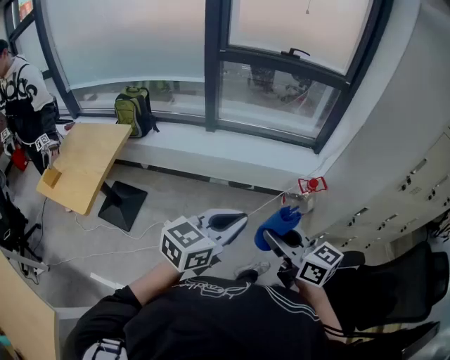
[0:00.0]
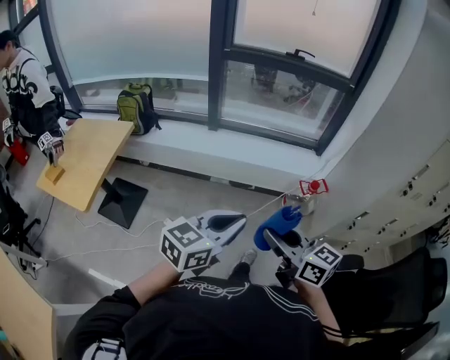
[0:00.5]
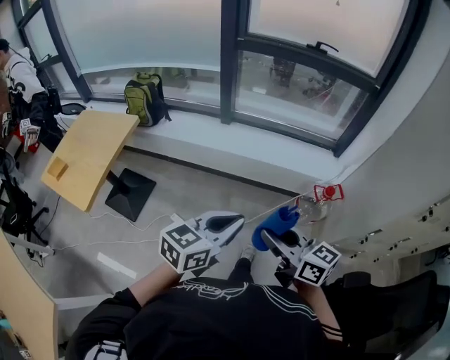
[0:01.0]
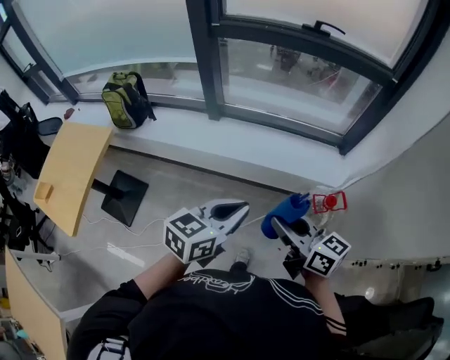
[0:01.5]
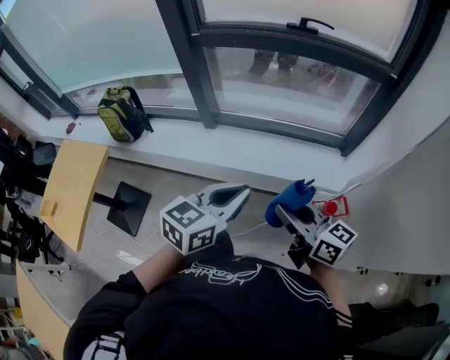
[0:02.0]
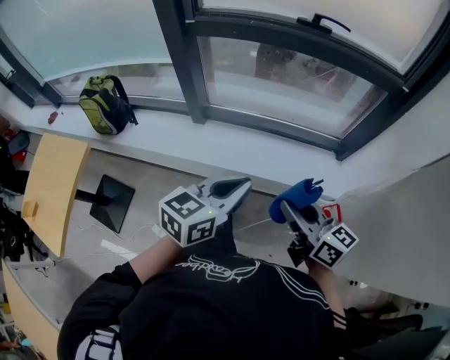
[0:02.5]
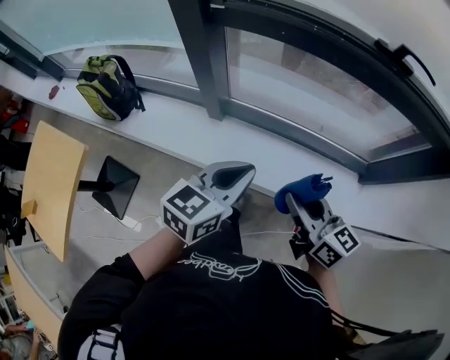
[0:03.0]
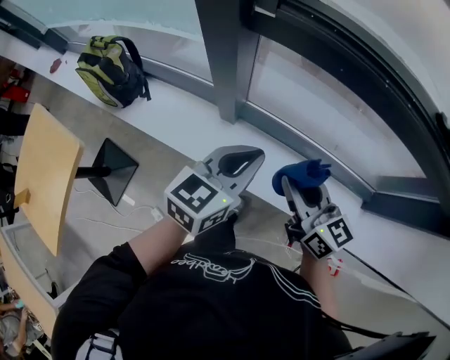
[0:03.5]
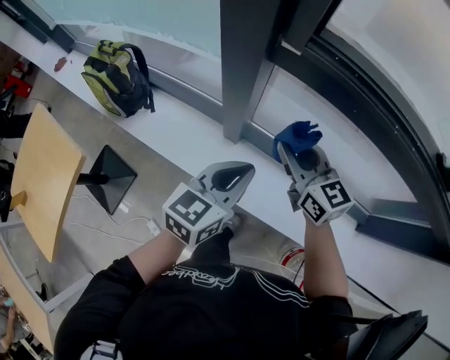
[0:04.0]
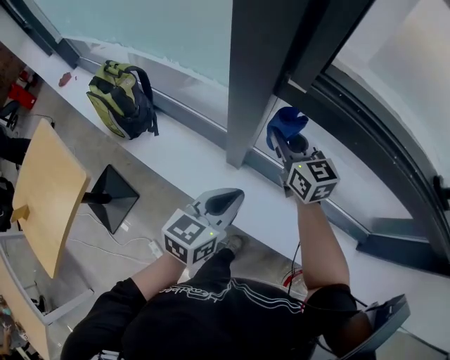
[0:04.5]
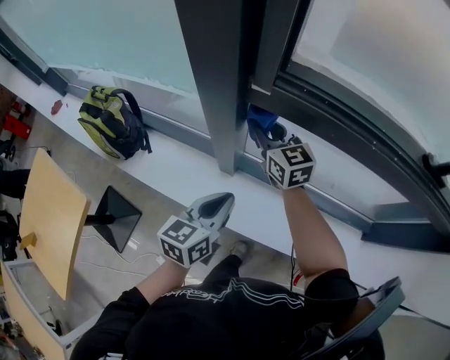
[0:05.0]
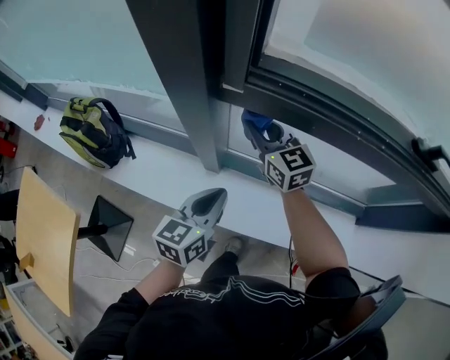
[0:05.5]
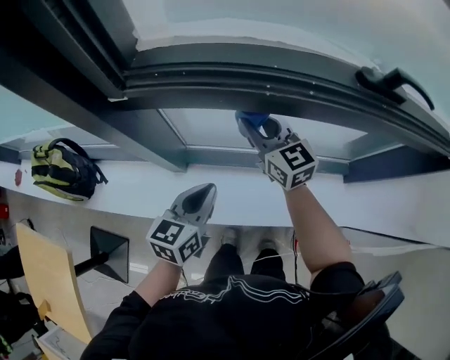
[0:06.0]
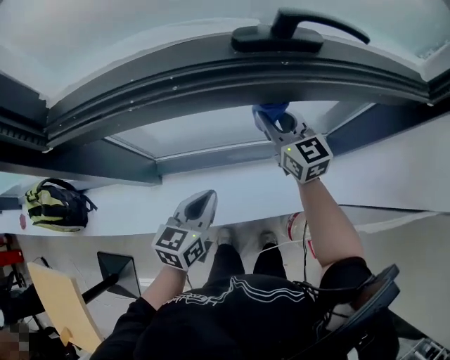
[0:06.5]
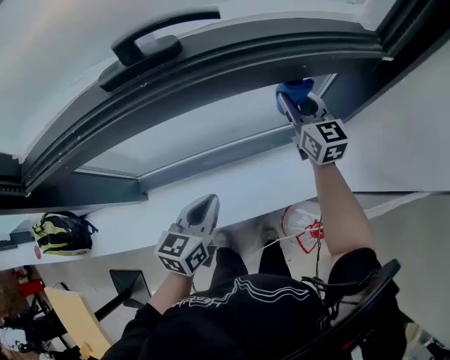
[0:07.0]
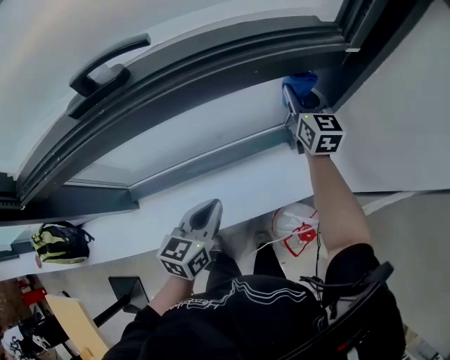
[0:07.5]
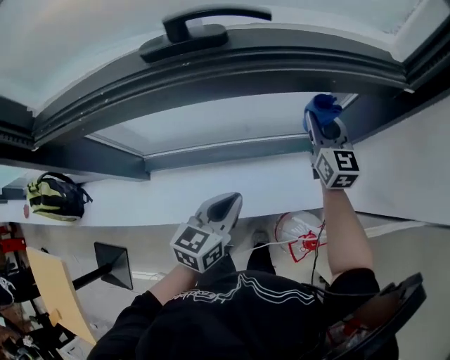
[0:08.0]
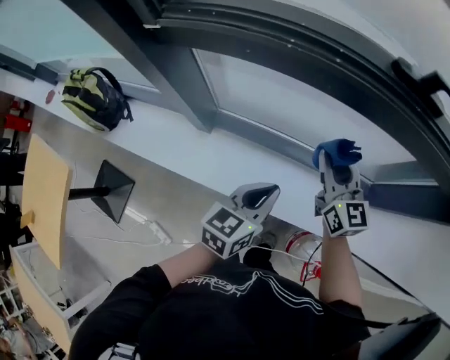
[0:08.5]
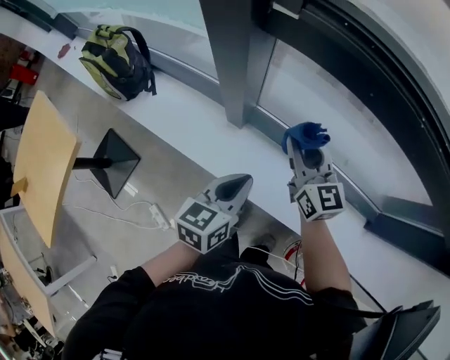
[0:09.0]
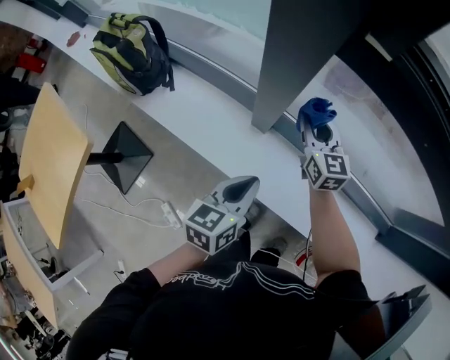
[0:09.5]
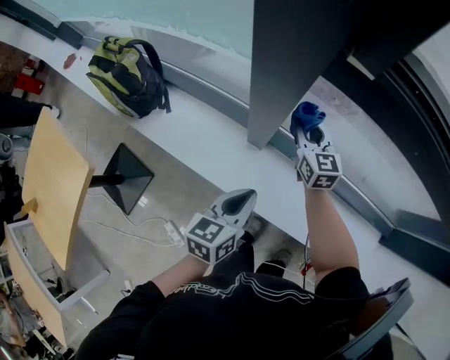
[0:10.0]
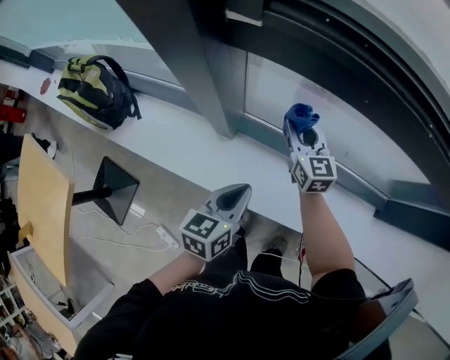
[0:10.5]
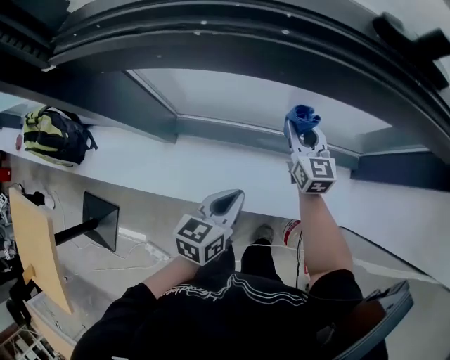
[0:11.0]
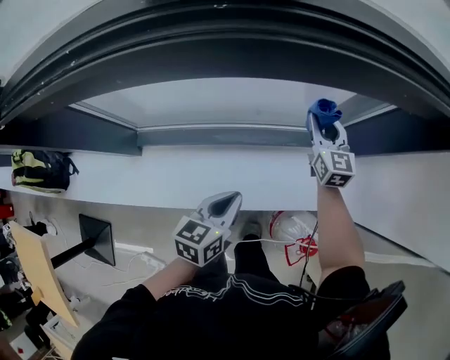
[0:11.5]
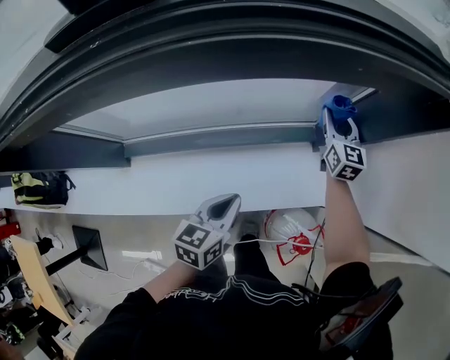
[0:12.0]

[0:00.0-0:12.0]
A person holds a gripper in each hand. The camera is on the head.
0:00.0 to 0:02.0: Both grippers are carried forward, about 40 cm.
0:02.0 to 0:04.0: The two grippers travel together, forward, approximately 50 cm. The right gripper changes its angle by roughly 30 degrees.
0:04.0 to 0:06.0: The left gripper goes roughly 10 cm to the right and downward, while the right gripper moves to the right and forward, roughly 15 cm, and rotates about 20 degrees.
0:06.0 to 0:08.0: The left gripper moves roughly 30 cm; the right gripper ends up some 50 cm from where it was, and swivels about 30 degrees.
0:08.0 to 0:10.0: Both grippers are carried approximately 60 cm. The right gripper changes its angle by about 40 degrees; the left gripper swivels roughly 40 degrees.
0:10.0 to 0:12.0: The pair of grippers is taken about 60 cm. The right gripper changes its angle by about 50 degrees, while the left gripper changes its angle by about 40 degrees.

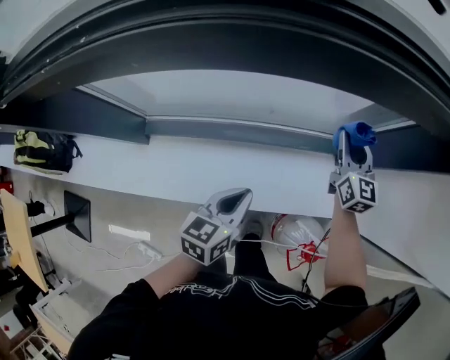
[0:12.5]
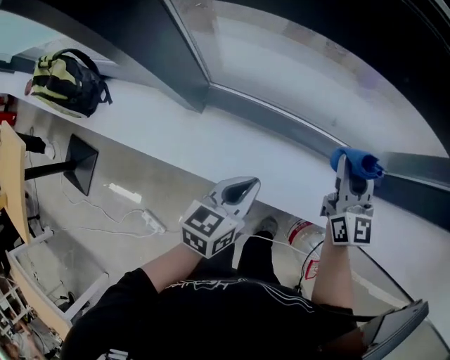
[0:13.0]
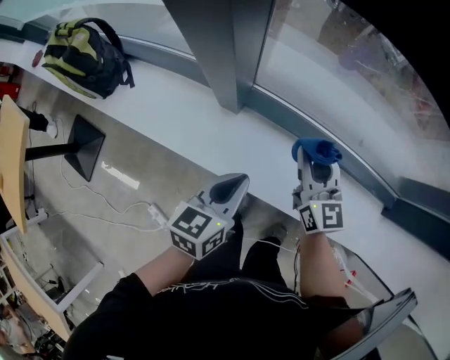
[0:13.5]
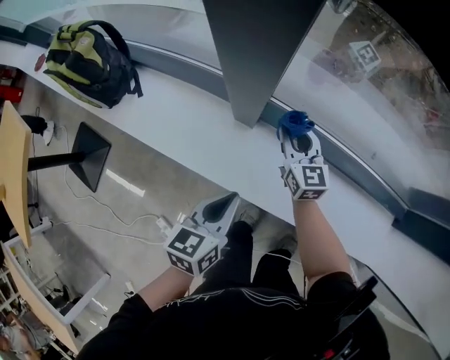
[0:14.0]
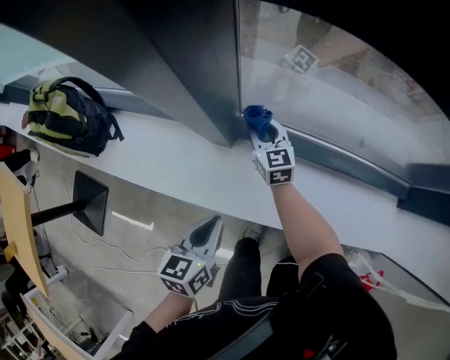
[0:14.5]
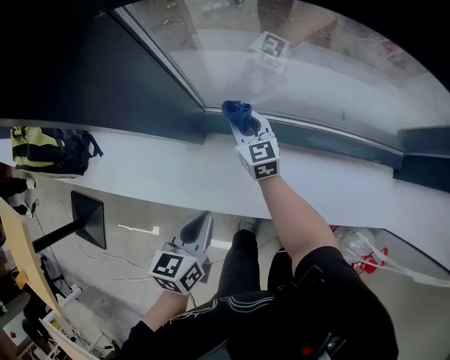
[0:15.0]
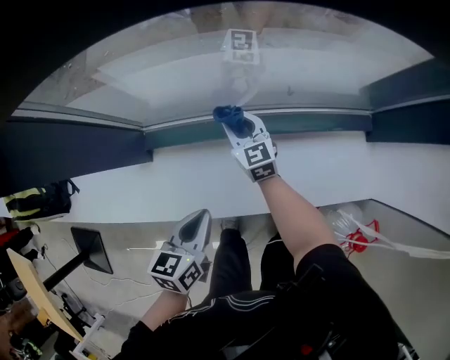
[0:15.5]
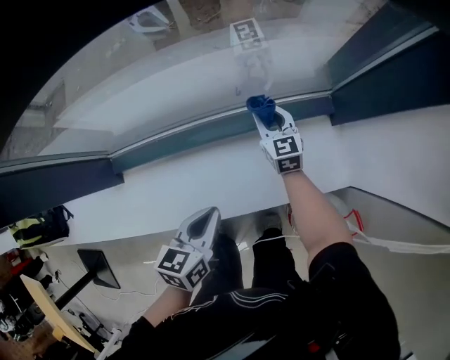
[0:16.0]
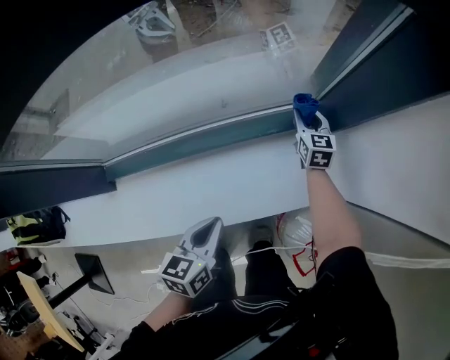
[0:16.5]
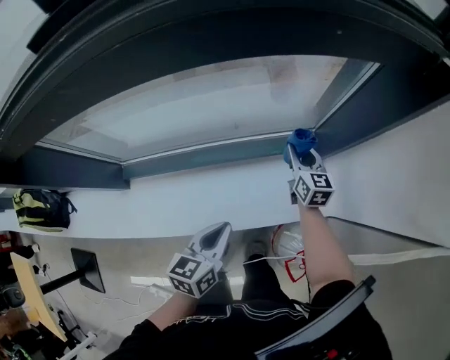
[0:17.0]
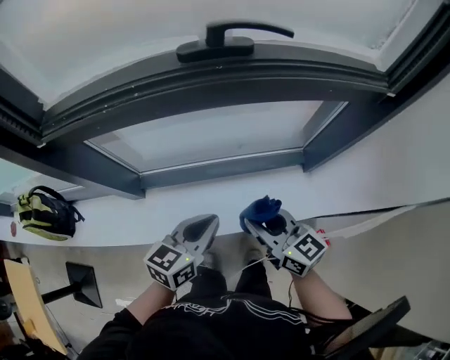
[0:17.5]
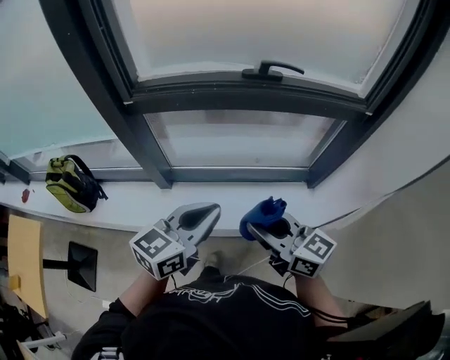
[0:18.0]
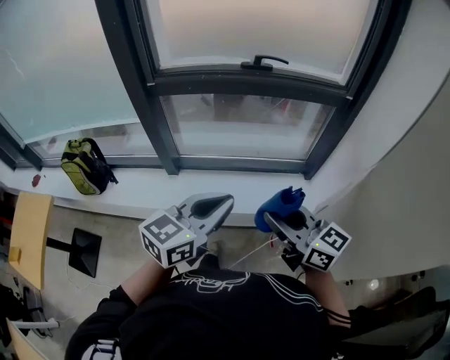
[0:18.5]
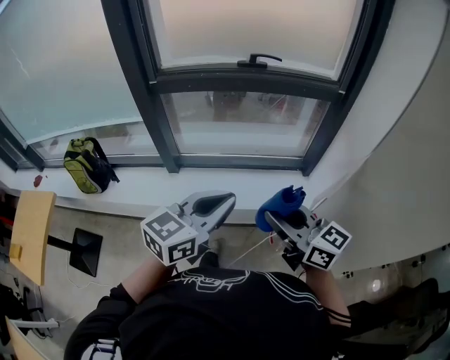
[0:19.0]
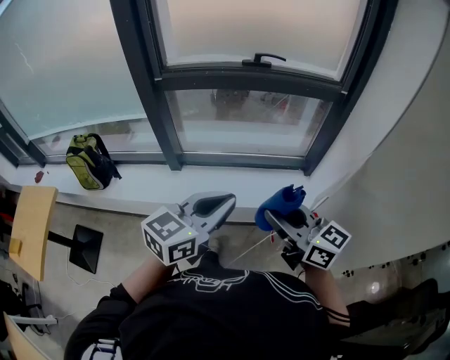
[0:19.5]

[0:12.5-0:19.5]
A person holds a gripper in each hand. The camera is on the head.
0:12.5 to 0:14.5: The pair of grippers is taken roughly 50 cm. The left gripper turns by some 30 degrees; the right gripper rotates some 40 degrees.
0:14.5 to 0:16.0: The right gripper ends up roughly 50 cm from where it was, and changes its angle by about 30 degrees; the left gripper shifts by roughly 35 cm, and swivels approximately 30 degrees.
0:16.0 to 0:17.5: The left gripper heads upward, covering approximately 25 cm. Meanwhile the right gripper goes roughly 50 cm upward and backward, and swivels some 30 degrees.
0:17.5 to 0:19.5: The grippers both shift backward and upward by some 40 cm.

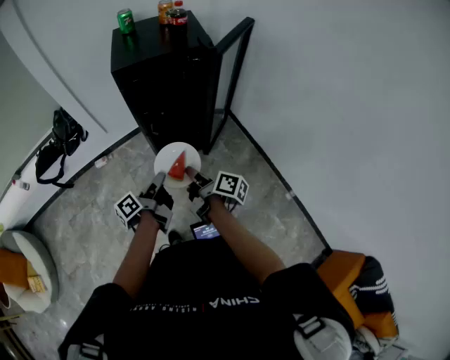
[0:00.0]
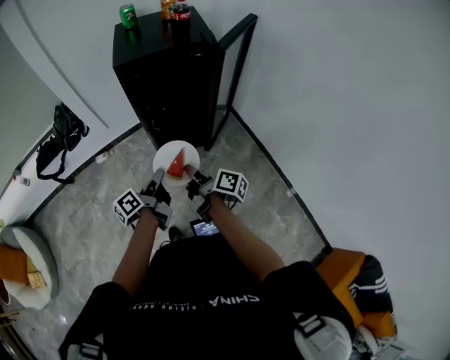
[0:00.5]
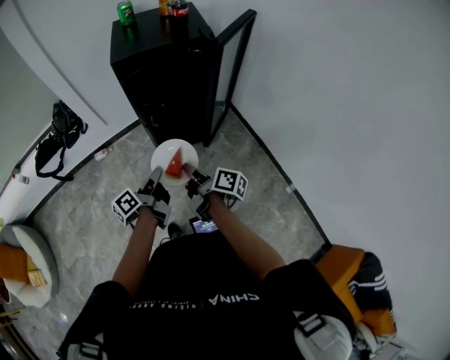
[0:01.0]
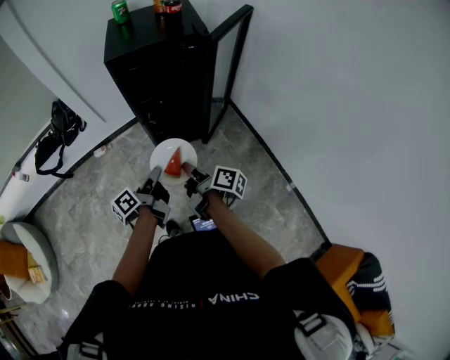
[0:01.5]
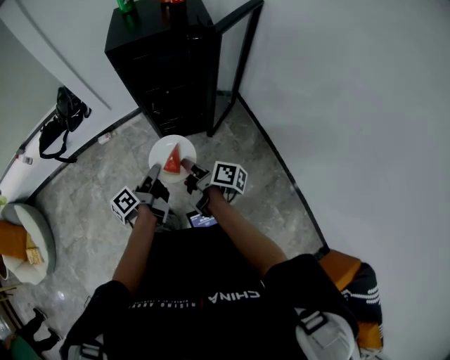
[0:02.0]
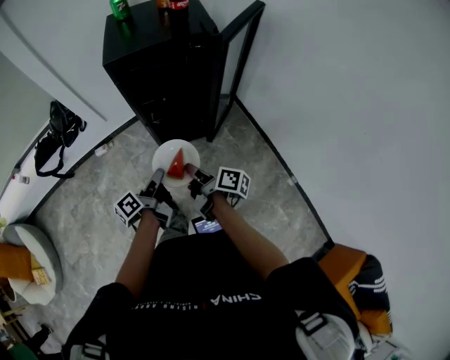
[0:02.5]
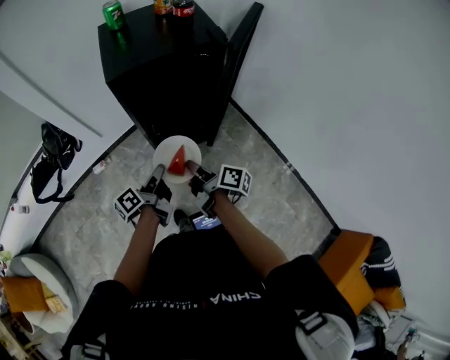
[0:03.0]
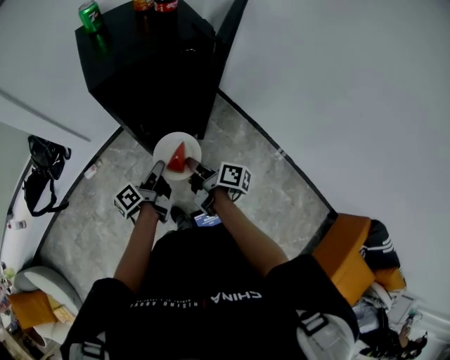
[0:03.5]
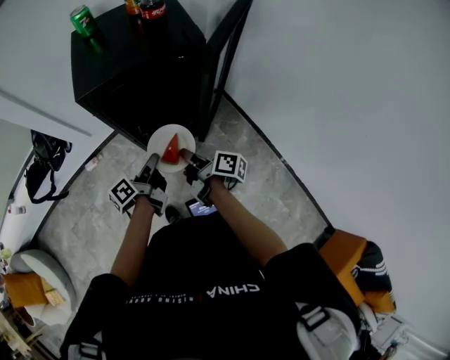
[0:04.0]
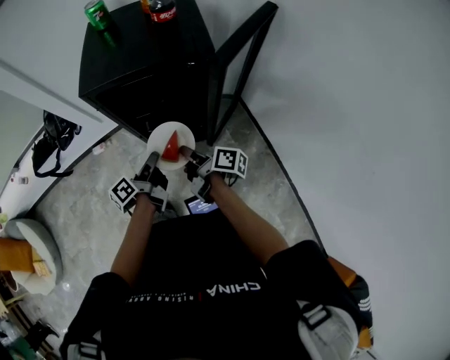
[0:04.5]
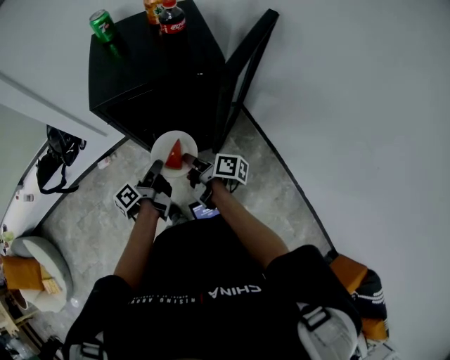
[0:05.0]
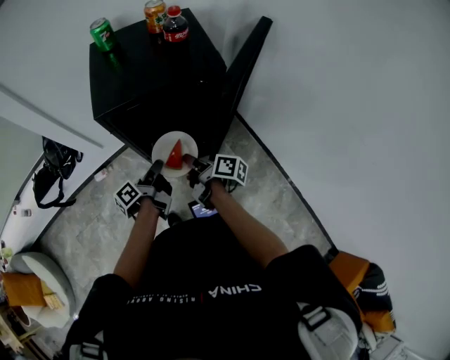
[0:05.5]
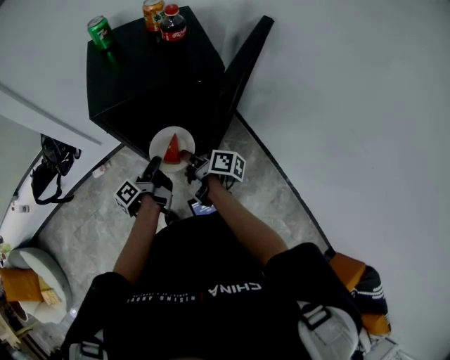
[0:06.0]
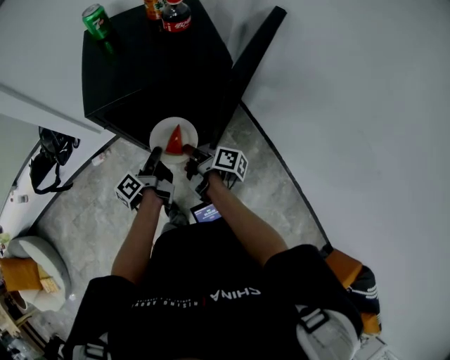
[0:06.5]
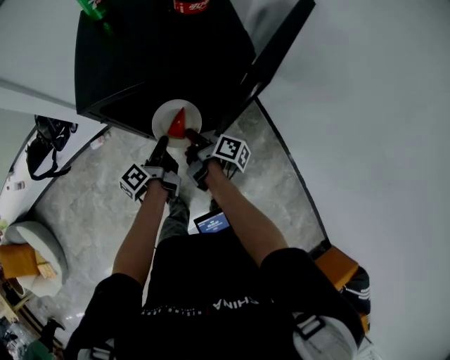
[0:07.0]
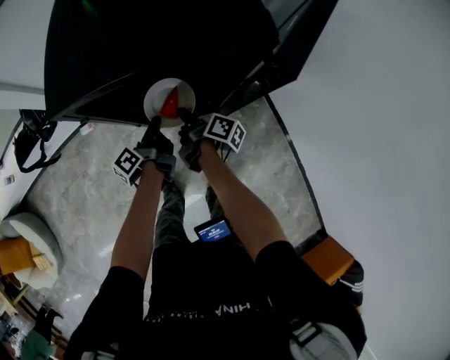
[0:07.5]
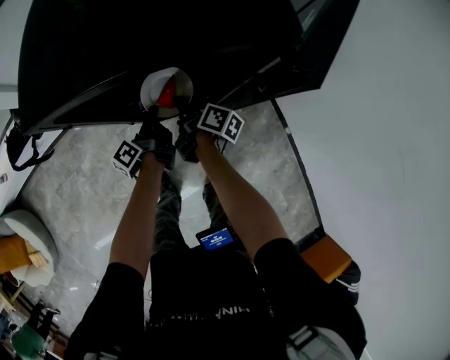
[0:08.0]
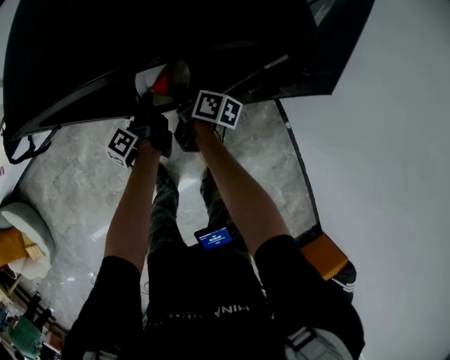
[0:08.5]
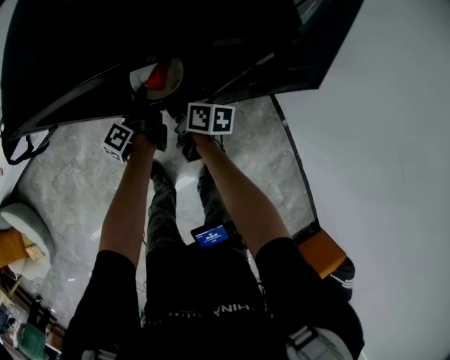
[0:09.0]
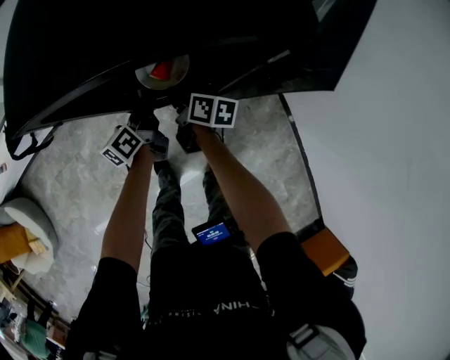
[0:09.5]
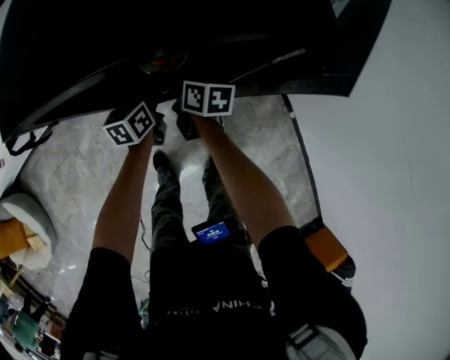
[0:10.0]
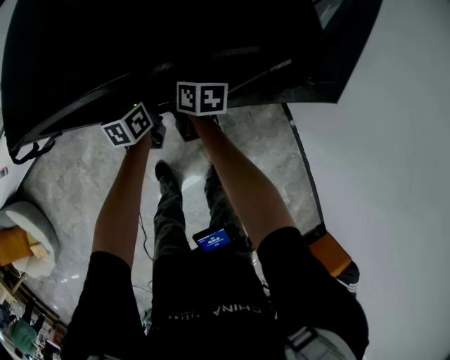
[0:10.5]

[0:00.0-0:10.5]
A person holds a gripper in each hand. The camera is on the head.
0:02.0 to 0:04.0: The left gripper changes place by about 25 cm.
0:04.0 to 0:06.5: The left gripper moves about 10 cm.
0:06.5 to 0:08.5: The left gripper moves downward, about 20 cm.
0:08.5 to 0:10.5: The left gripper ends up about 5 cm from where it was, and twists about 50 degrees clockwise, seen from behind.
